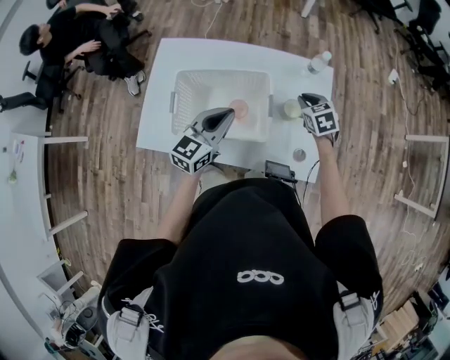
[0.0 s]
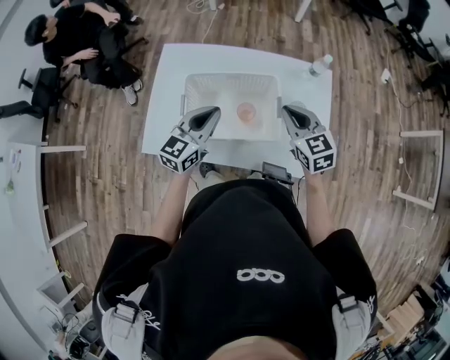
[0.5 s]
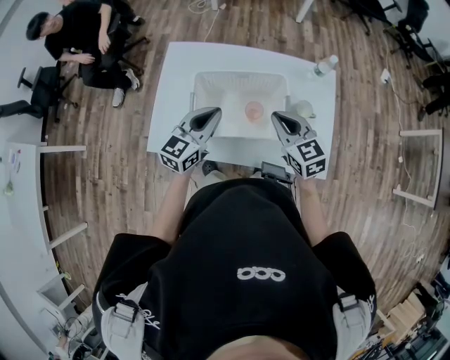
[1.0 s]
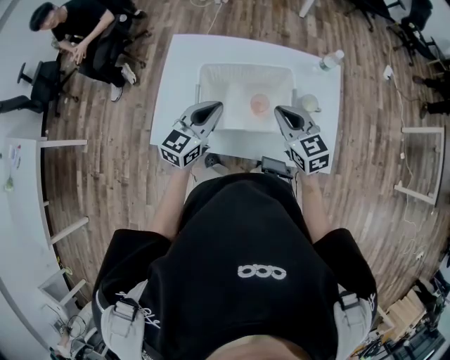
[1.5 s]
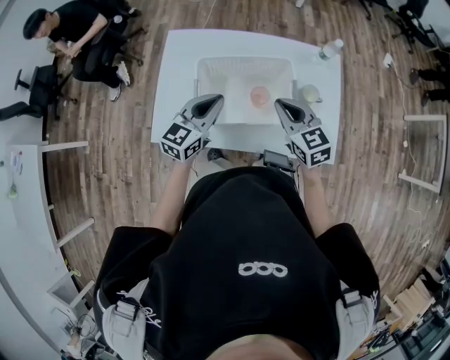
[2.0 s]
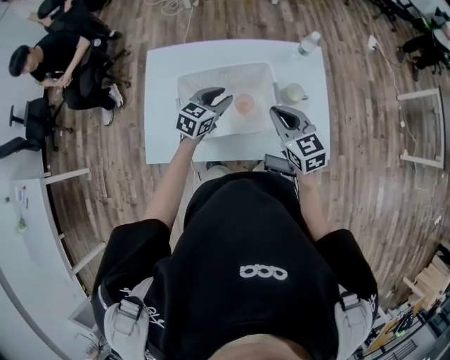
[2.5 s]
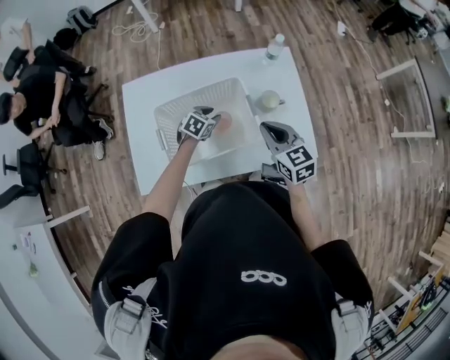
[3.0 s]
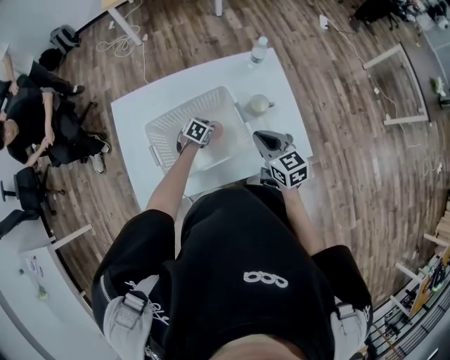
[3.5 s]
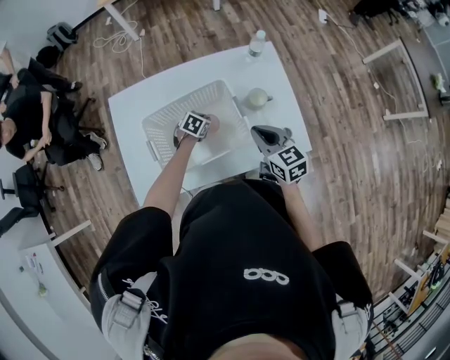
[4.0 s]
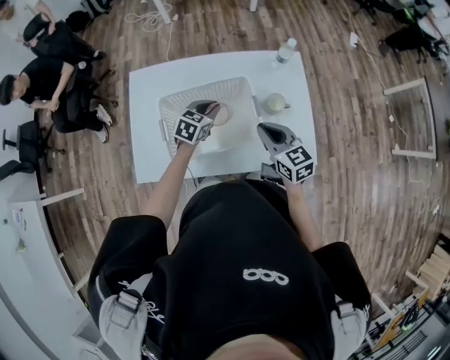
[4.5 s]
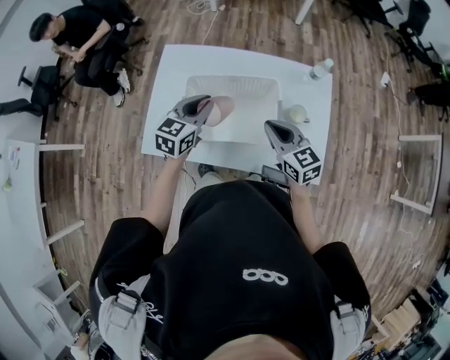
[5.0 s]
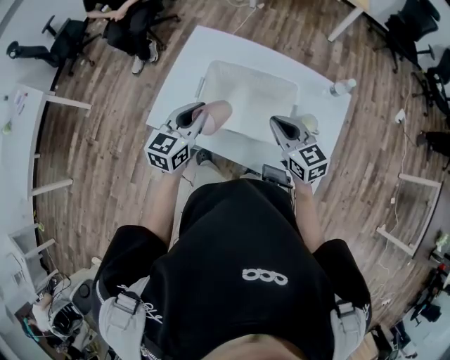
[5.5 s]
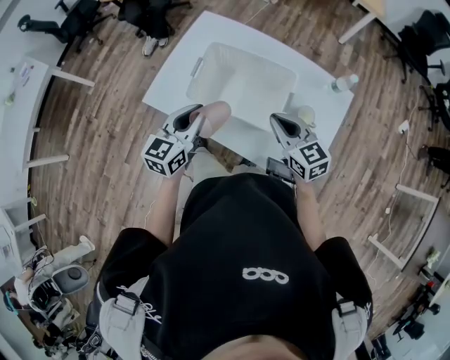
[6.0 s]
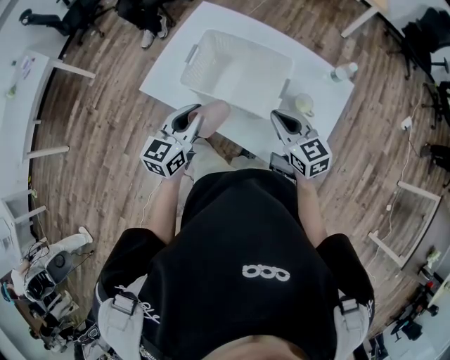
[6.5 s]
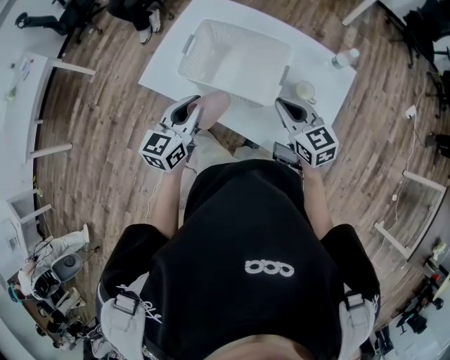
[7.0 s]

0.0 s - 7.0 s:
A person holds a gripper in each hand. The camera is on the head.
0.0 s - 2.0 s: The left gripper shifts about 10 cm to the left. Meanwhile the right gripper is displaced to the left, backward and upward by approximately 25 cm, and turns by about 20 degrees.
2.0 s - 3.5 s: The left gripper goes approximately 30 cm downward, tips its fingers downward by some 50 degrees, and opens its fingers. Meanwhile the right gripper changes place by some 10 cm, and changes its angle by roughly 20 degrees.
3.5 s - 5.0 s: The right gripper shifts by approximately 5 cm, and turns by about 30 degrees. The left gripper is displaced upward by some 30 cm, and tips its fingers upward by approximately 40 degrees.
5.0 s - 7.0 s: The right gripper moves backward, some 5 cm, and turns by approximately 20 degrees; the left gripper goes approximately 20 cm backward, and turns by approximately 30 degrees.

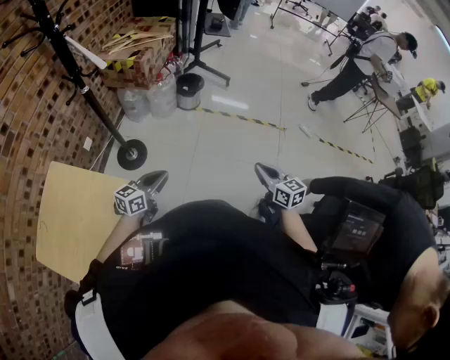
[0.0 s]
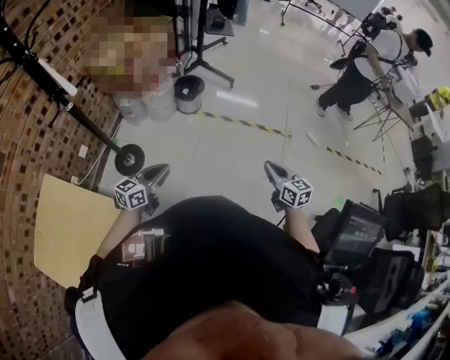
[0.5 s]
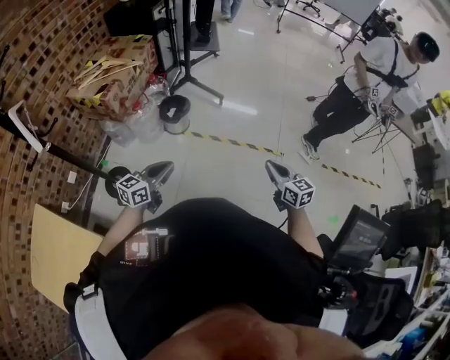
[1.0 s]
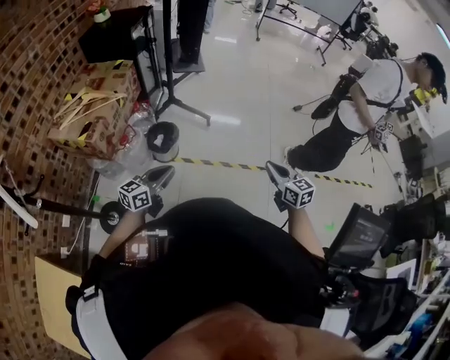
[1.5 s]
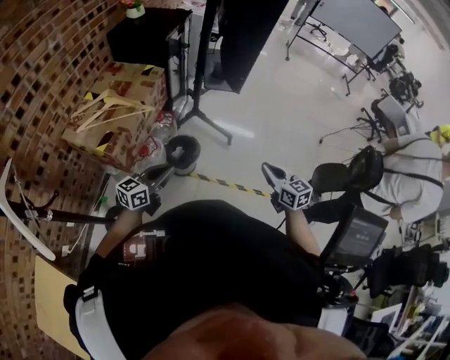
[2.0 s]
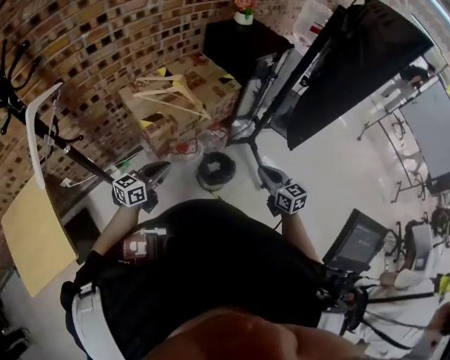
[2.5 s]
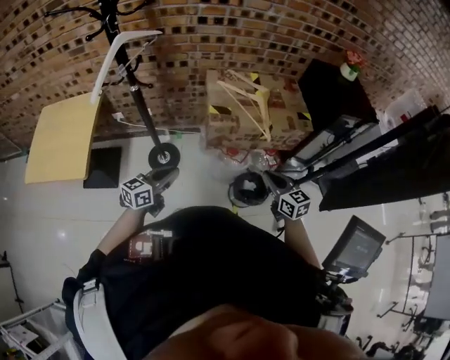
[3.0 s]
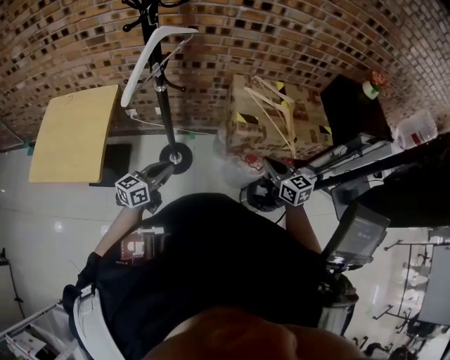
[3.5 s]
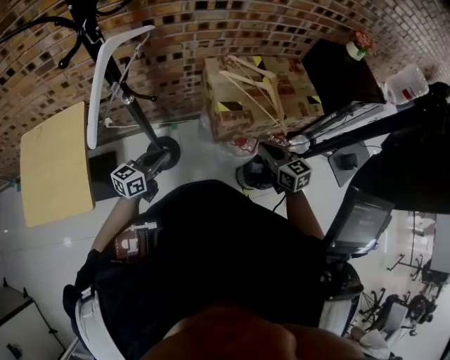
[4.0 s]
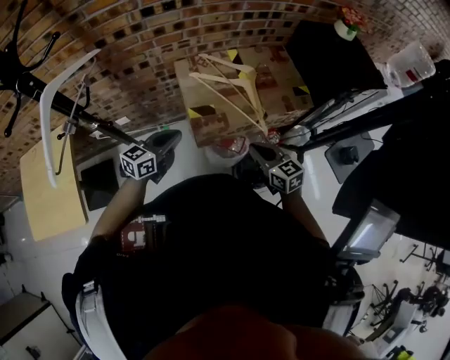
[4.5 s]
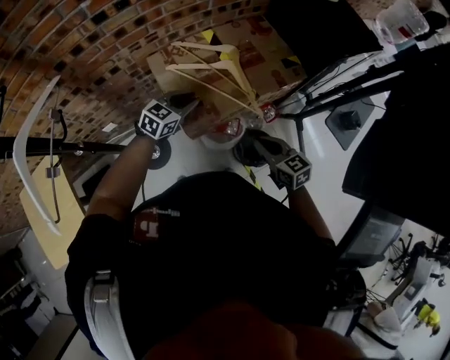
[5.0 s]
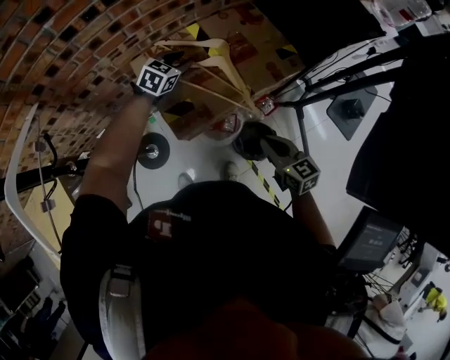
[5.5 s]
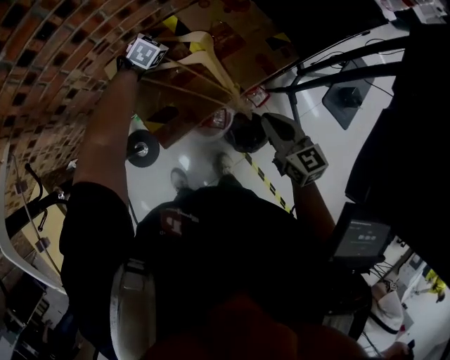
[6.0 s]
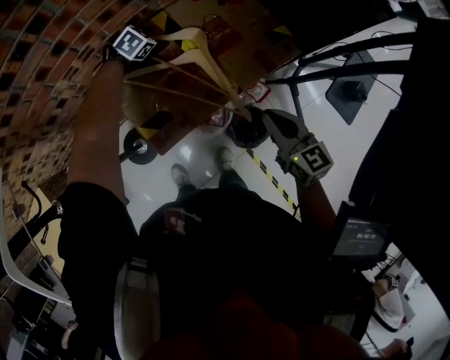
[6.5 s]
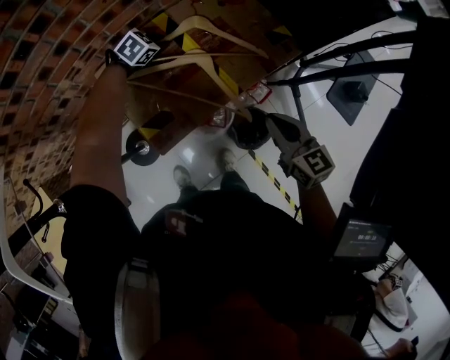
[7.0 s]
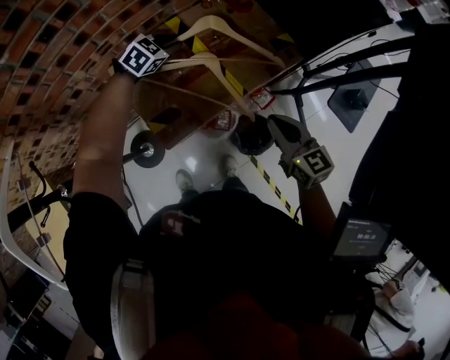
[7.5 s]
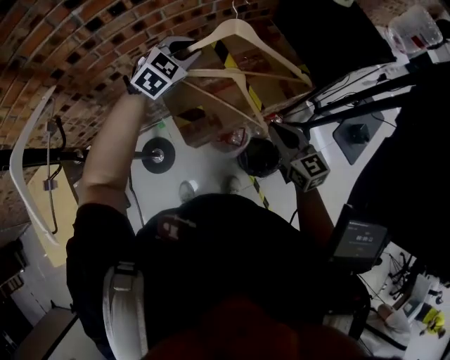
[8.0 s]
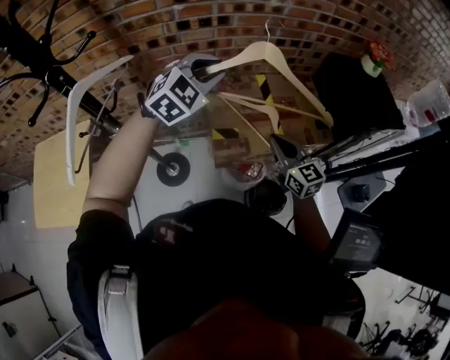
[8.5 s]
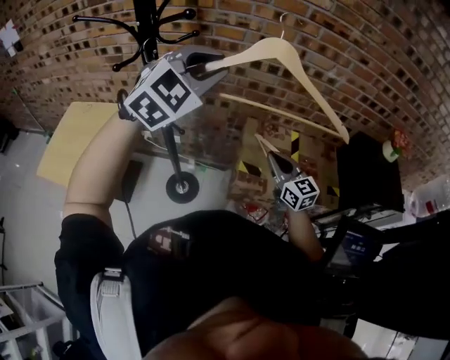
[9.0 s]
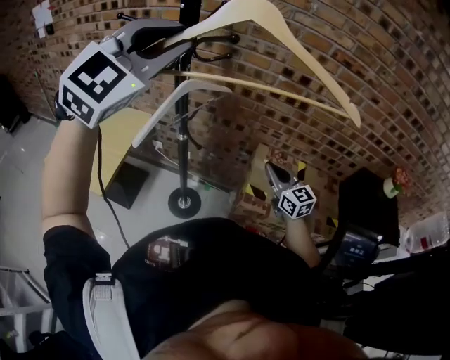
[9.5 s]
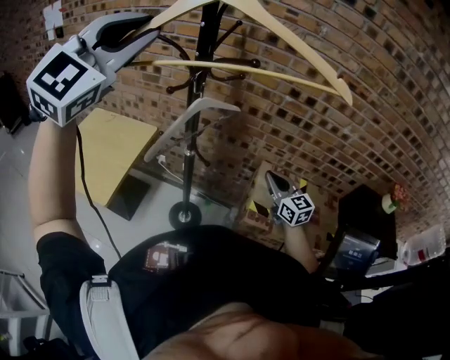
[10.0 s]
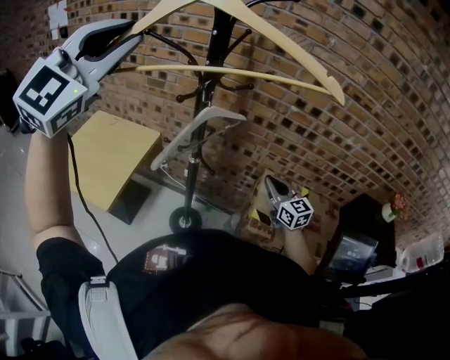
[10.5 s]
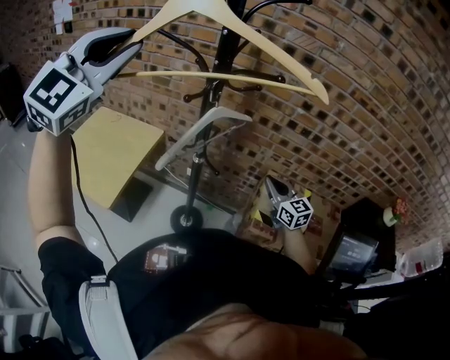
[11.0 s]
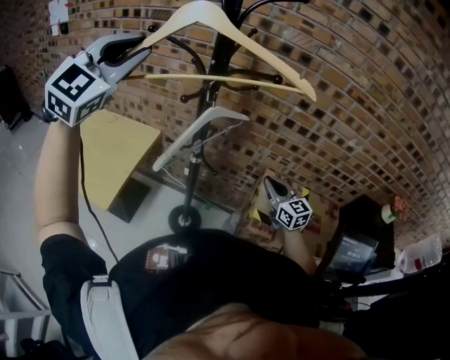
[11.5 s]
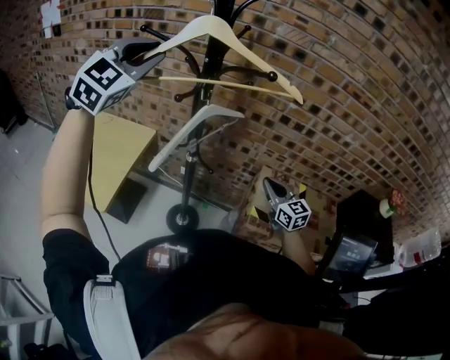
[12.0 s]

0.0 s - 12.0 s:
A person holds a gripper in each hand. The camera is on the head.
0.0 s - 2.0 s: The two grippers travel together, forward, roughly 60 cm.
2.0 s - 4.0 s: The right gripper ends up some 50 cm from where it was, and changes its angle by some 60 degrees, while the left gripper shifts by roughly 30 cm, and swivels some 60 degrees.
4.0 s - 6.0 s: The left gripper goes about 60 cm forward and to the right, points its fingers approximately 40 degrees further downward, and opens its fingers. The right gripper goes approximately 25 cm to the right and forward, and turns by about 20 degrees.
6.0 s - 8.0 s: The right gripper moves roughly 5 cm; the left gripper heads upward and backward, covering roughly 25 cm, changes its angle by some 20 degrees, and closes its fingers.
8.0 s - 10.0 s: The right gripper changes place by some 35 cm, and swivels approximately 40 degrees. Meanwhile the left gripper ends up approximately 80 cm from where it was, and tilts its fingers some 40 degrees upward.
10.0 s - 12.0 s: The left gripper shifts roughly 15 cm forward and downward.

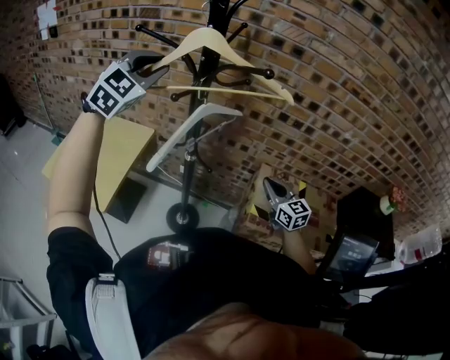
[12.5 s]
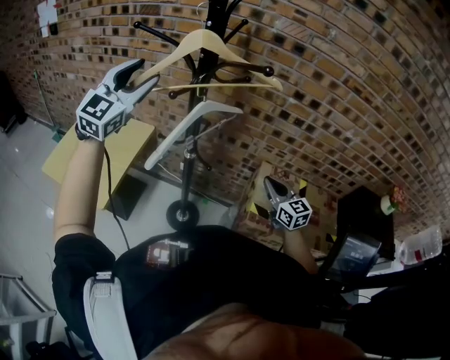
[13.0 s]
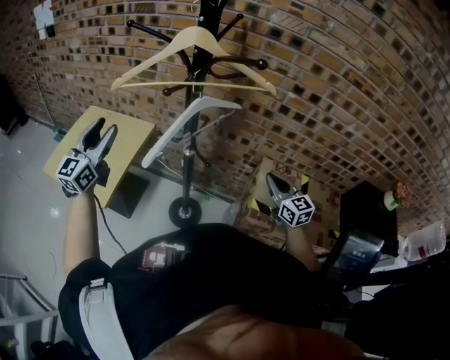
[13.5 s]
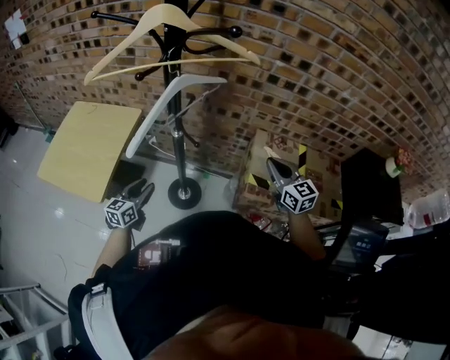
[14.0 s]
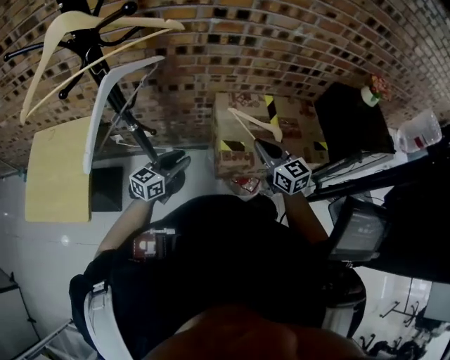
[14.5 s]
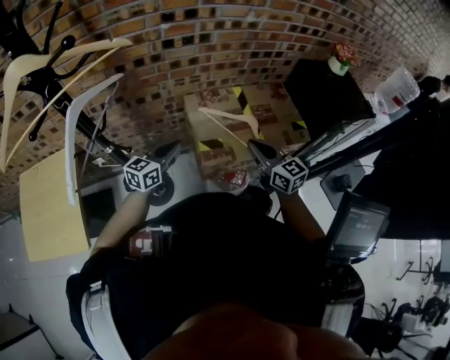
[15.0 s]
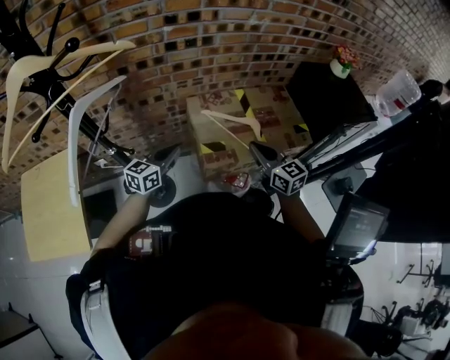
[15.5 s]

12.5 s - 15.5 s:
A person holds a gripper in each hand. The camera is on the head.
12.5 s - 14.0 s: The left gripper travels downward by approximately 50 cm, and rotates around the line of its fingers by about 60 degrees, counterclockwise from behind; the right gripper ends up about 5 cm from where it was.
14.0 s - 15.5 s: The right gripper ends up about 15 cm from where it was, and turns by some 20 degrees. Meanwhile the left gripper shifts by about 35 cm, swivels approximately 40 degrees, and closes its fingers.

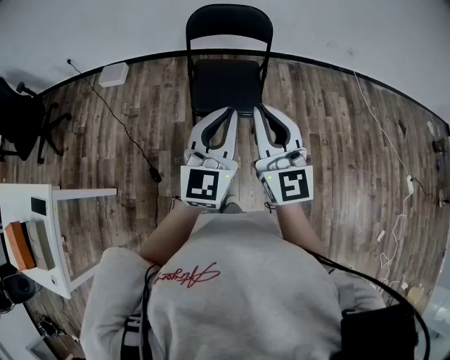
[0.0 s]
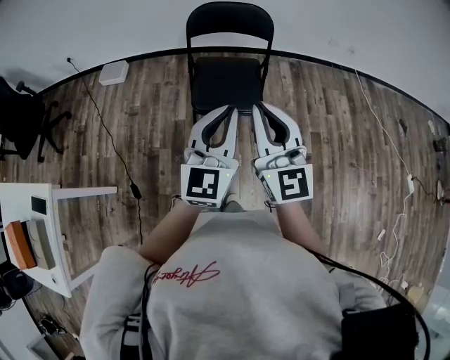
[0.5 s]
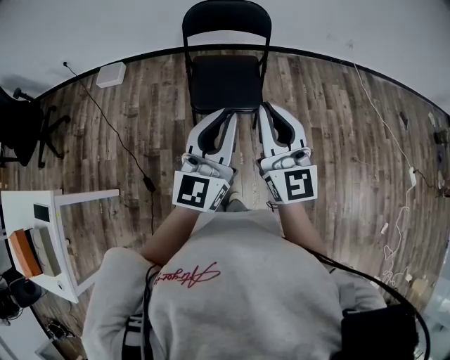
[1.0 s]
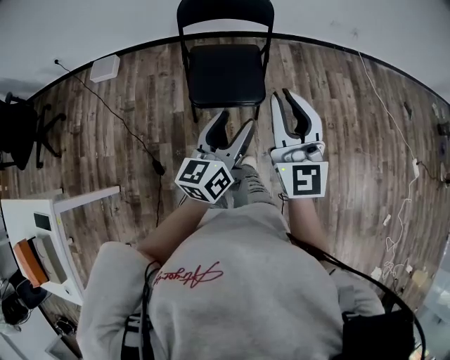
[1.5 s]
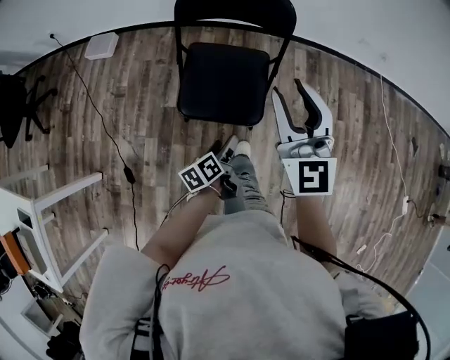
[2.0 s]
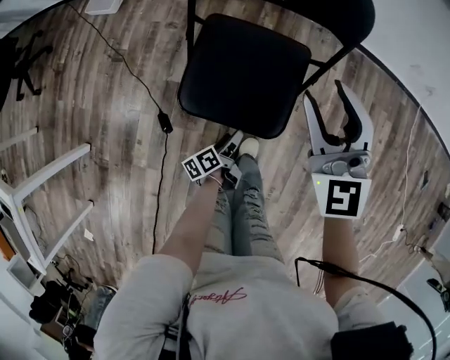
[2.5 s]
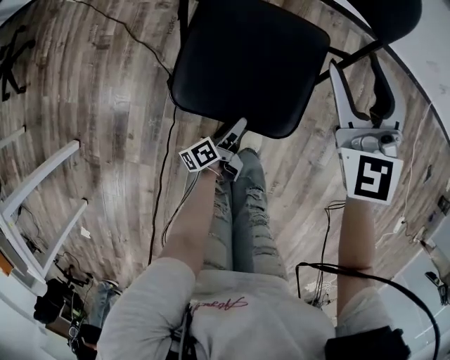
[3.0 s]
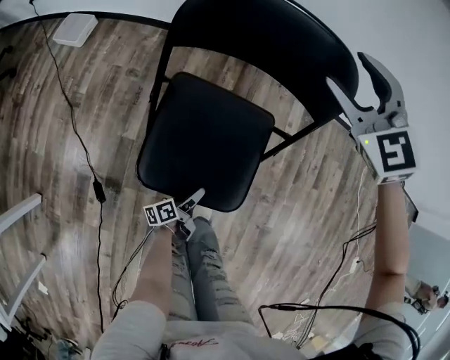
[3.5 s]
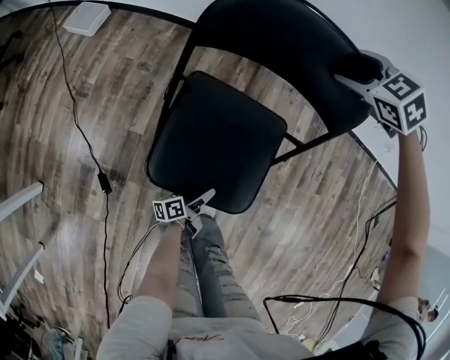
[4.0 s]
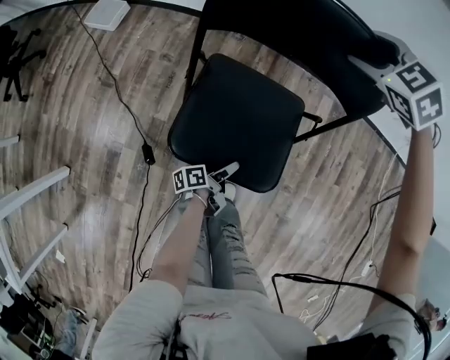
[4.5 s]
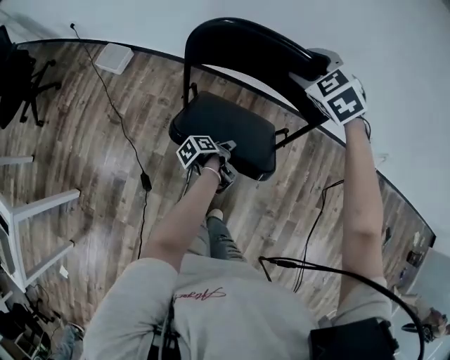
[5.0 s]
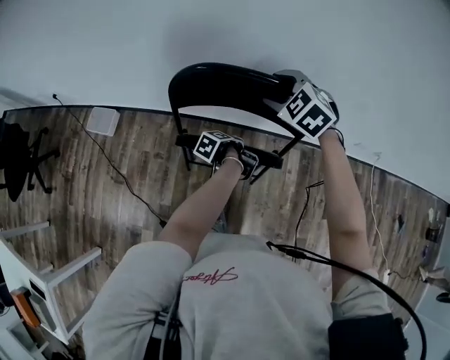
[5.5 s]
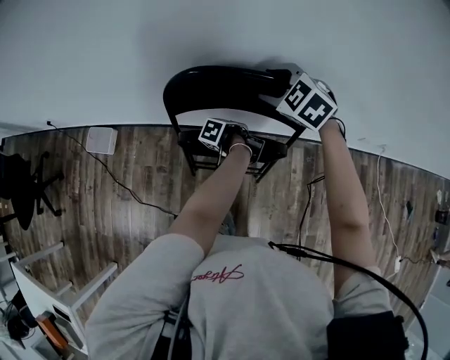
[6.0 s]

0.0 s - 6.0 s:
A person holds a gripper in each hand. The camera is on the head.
0.0 s - 2.0 s: The left gripper moves downward, some 35 cm, rolls counterclockwise, seen from behind, by approximately 70 degrees, and opens up. Meanwhile the right gripper travels forward by about 25 cm, and opens up.
2.0 s - 4.0 s: The right gripper shifts approximately 50 cm forward and downward, tips its fingers downward by about 60 degrees, and opens its fingers. The left gripper is displaced downward by about 25 cm, and swivels some 30 degrees.
4.0 s - 6.0 s: The right gripper travels forward and upward by roughly 25 cm. The left gripper shifts roughly 60 cm forward and upward, tilts its fingers approximately 50 degrees downward, and closes its fingers.
